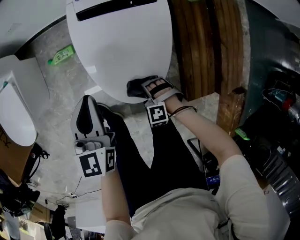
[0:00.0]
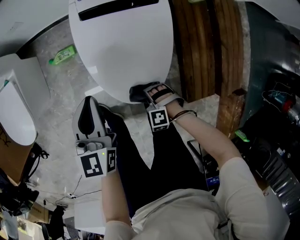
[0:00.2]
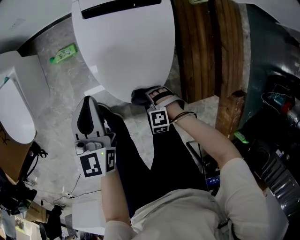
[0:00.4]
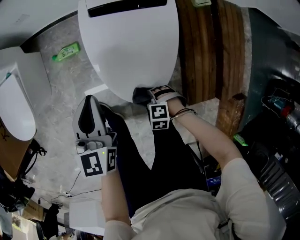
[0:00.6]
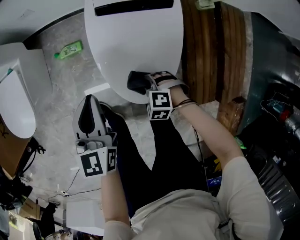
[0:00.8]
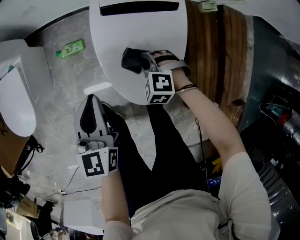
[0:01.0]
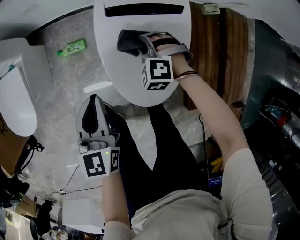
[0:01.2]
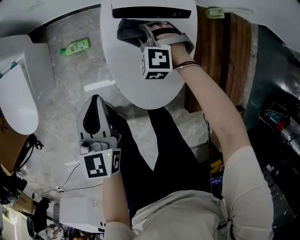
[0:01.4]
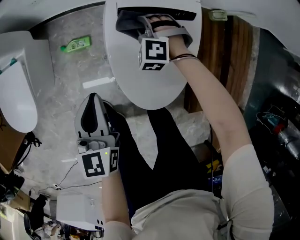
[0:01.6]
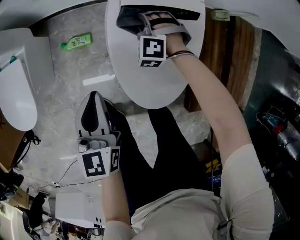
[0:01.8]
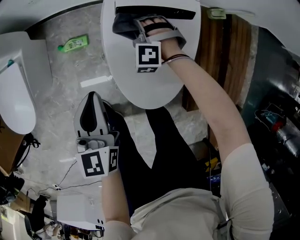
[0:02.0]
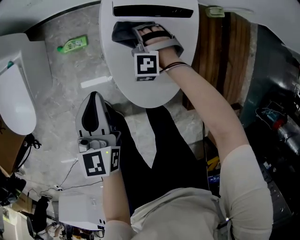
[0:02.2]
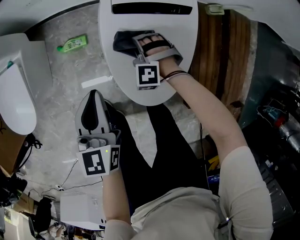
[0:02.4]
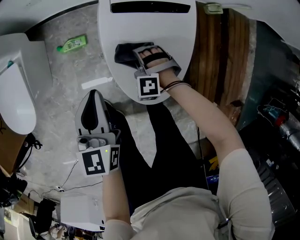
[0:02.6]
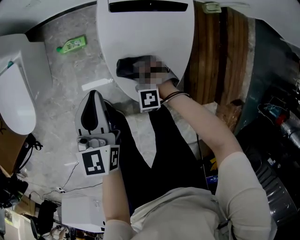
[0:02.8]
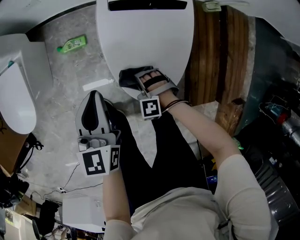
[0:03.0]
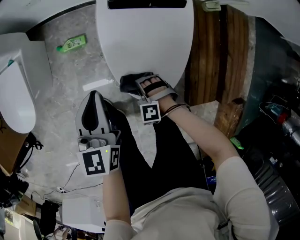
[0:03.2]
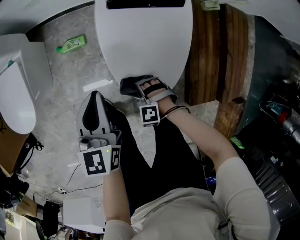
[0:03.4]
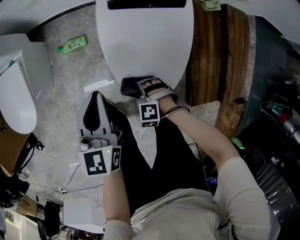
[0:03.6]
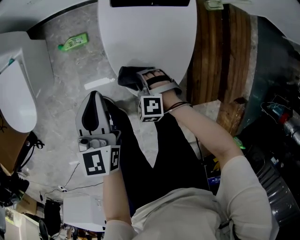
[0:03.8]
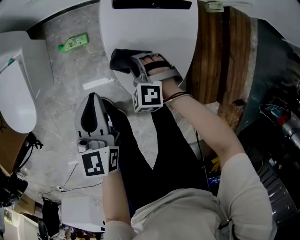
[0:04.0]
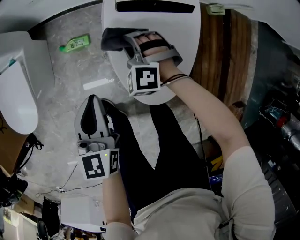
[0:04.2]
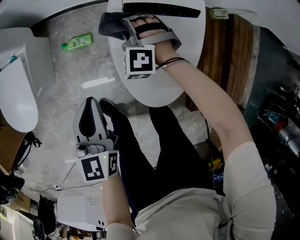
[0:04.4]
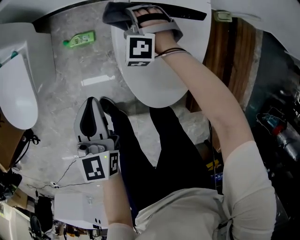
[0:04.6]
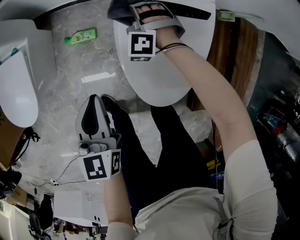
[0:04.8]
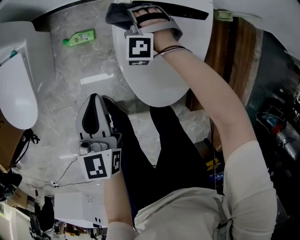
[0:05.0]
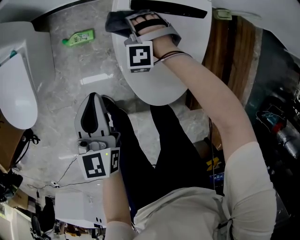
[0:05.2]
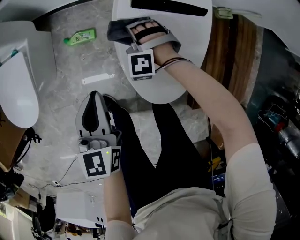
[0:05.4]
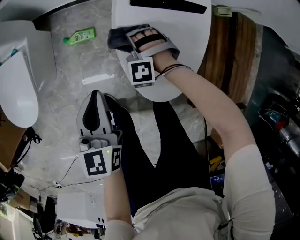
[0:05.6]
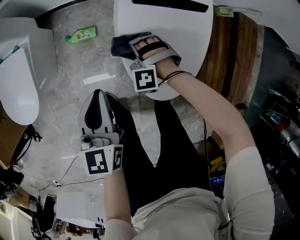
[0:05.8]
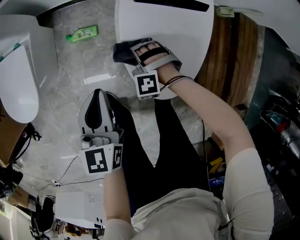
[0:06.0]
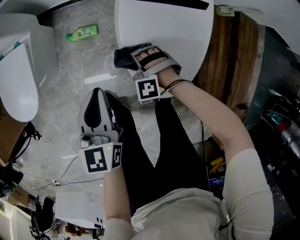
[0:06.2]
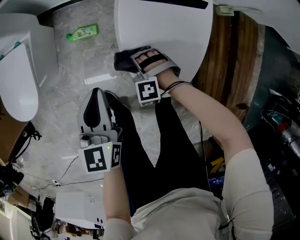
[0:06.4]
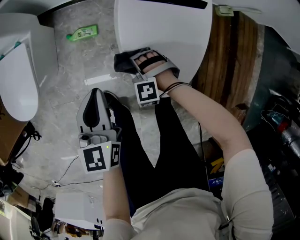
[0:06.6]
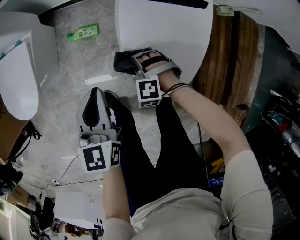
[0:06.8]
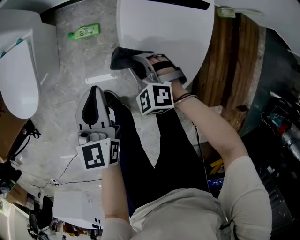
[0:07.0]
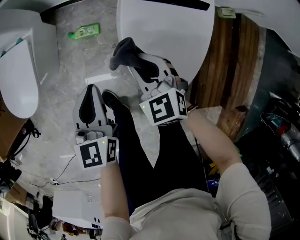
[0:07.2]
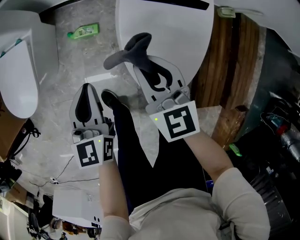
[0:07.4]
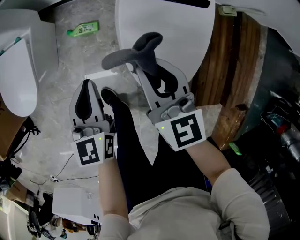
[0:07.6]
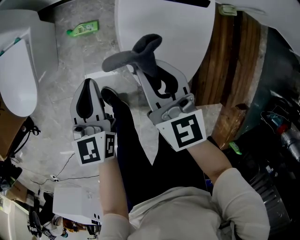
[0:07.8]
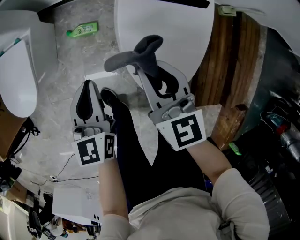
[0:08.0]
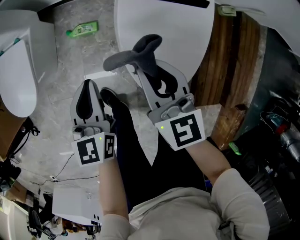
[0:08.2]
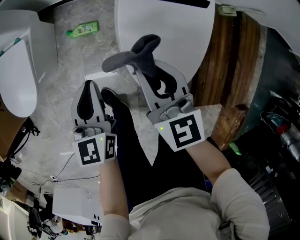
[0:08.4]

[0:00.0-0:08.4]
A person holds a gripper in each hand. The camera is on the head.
0:00.0 to 0:01.4: The left gripper changes place by roughly 5 cm.

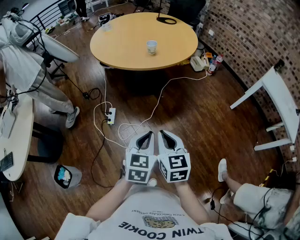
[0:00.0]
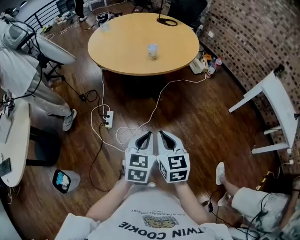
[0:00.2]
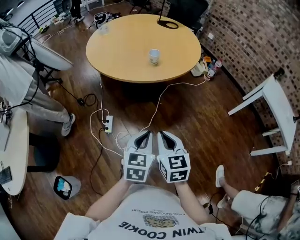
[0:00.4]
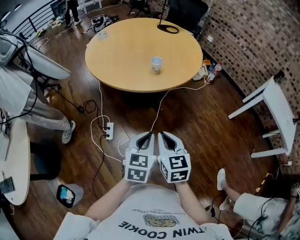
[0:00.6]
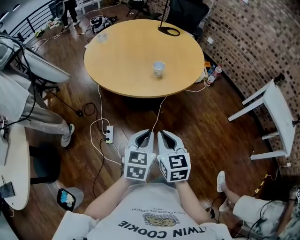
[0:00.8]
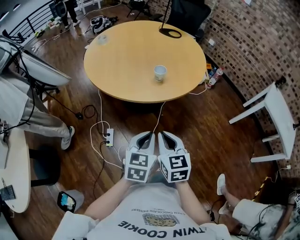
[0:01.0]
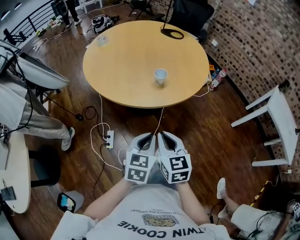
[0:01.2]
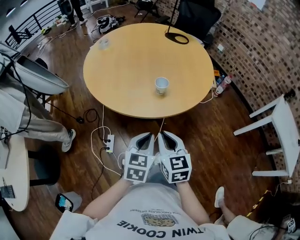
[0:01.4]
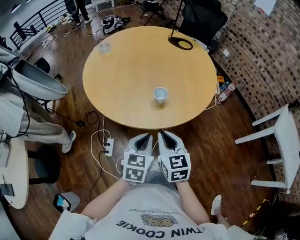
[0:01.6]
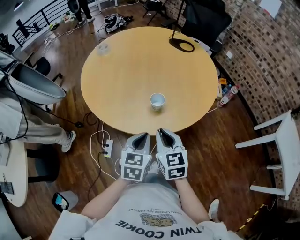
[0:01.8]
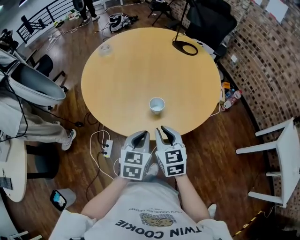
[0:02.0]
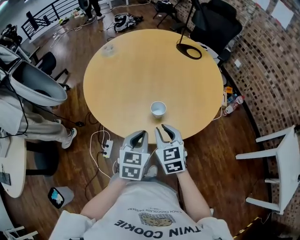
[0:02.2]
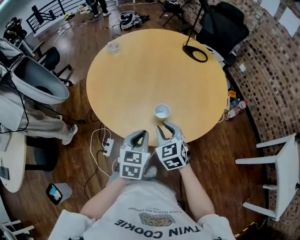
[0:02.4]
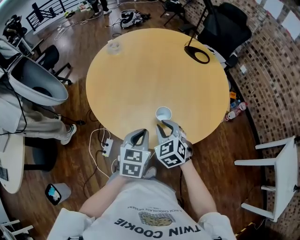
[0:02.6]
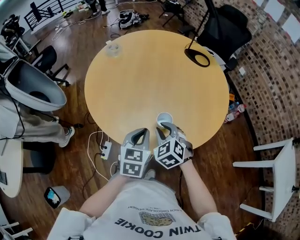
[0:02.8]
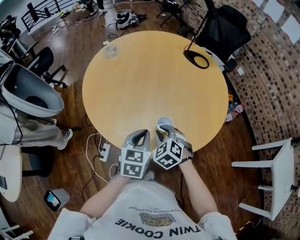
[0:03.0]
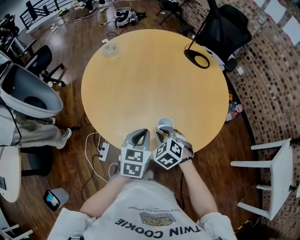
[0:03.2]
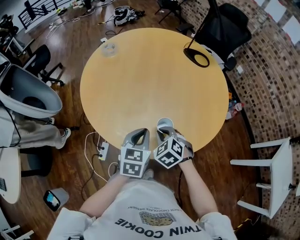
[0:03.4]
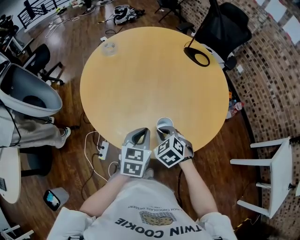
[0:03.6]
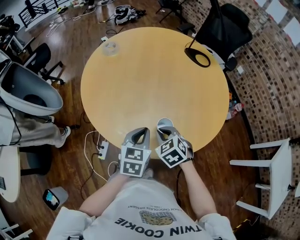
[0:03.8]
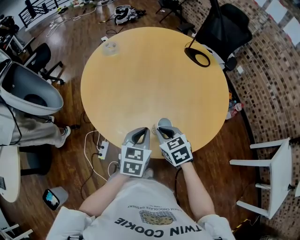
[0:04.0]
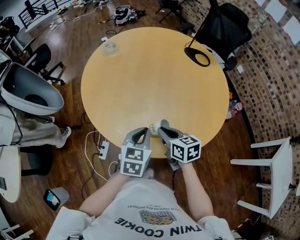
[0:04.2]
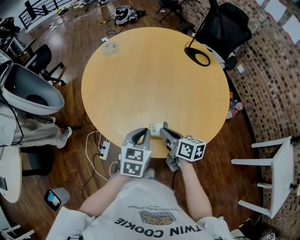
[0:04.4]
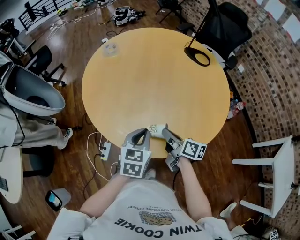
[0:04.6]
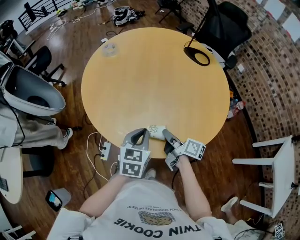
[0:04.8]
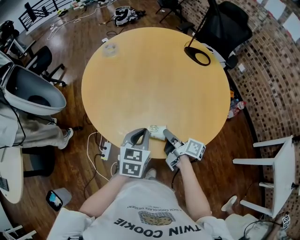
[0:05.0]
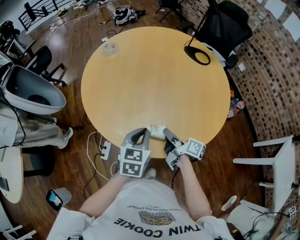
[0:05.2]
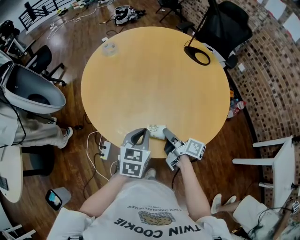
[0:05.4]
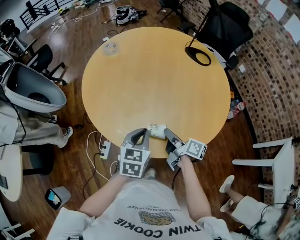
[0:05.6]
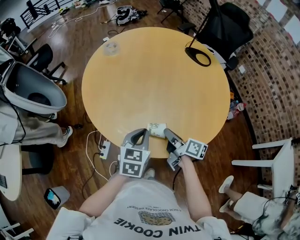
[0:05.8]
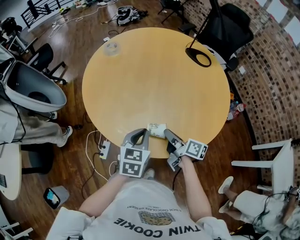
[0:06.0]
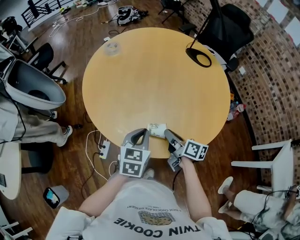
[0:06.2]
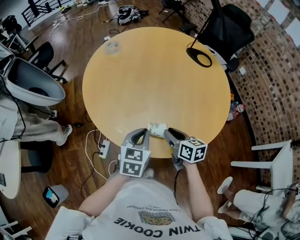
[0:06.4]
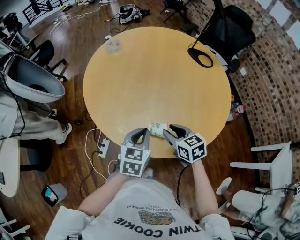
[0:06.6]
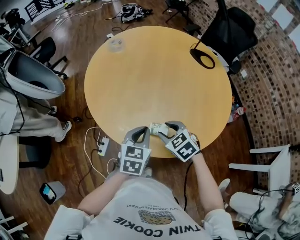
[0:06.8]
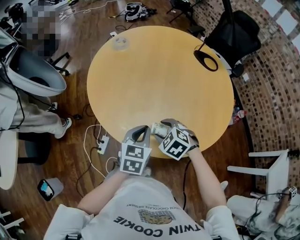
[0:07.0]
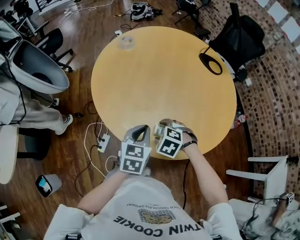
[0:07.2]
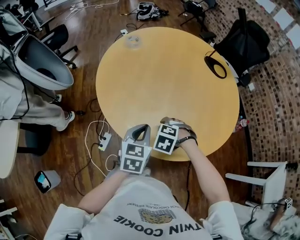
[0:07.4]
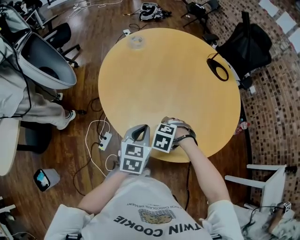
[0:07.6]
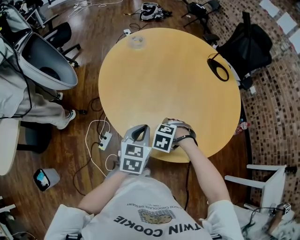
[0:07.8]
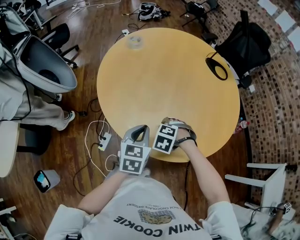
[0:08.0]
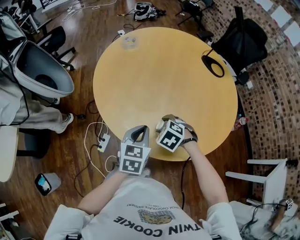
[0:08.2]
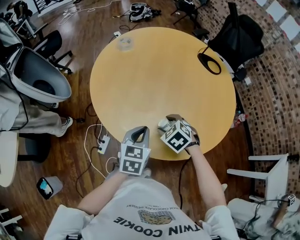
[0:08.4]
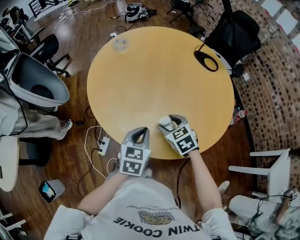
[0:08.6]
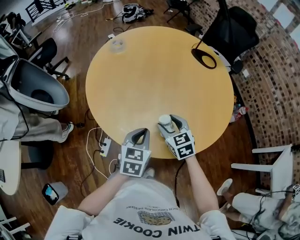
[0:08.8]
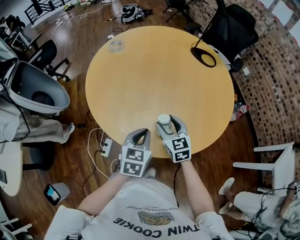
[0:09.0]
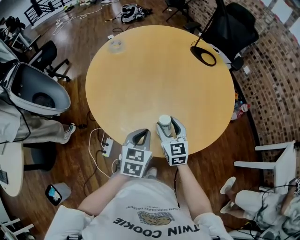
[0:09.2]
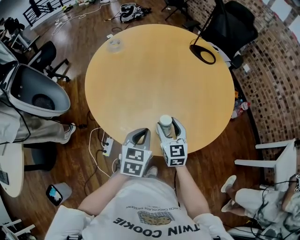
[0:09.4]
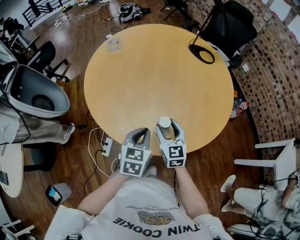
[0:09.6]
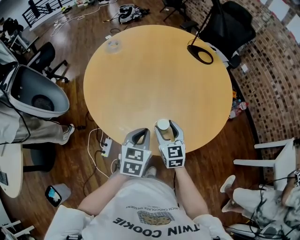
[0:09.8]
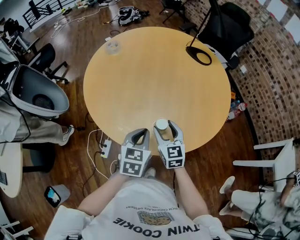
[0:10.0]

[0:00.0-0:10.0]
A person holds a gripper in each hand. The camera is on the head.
0:00.0 to 0:01.4: Both grippers travel together forward, roughly 35 cm.
0:01.4 to 0:02.8: The grippers both shift forward by some 25 cm. The right gripper rotates around the line of its fingers by approximately 40 degrees, counterclockwise from behind.
0:02.8 to 0:04.2: The right gripper rotates around the line of its fingers by some 50 degrees, clockwise from behind.
0:04.2 to 0:05.8: The right gripper moves about 5 cm, and rolls clockwise, seen from behind, by about 40 degrees.
0:05.8 to 0:07.2: The right gripper moves to the left, roughly 10 cm, twists some 100 degrees counterclockwise, seen from behind, and opens its fingers.
0:07.2 to 0:08.6: The right gripper moves about 10 cm, and rotates about 40 degrees.
0:08.6 to 0:10.0: The right gripper rotates about 30 degrees.

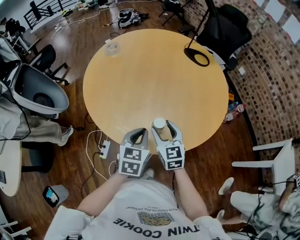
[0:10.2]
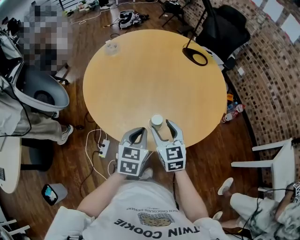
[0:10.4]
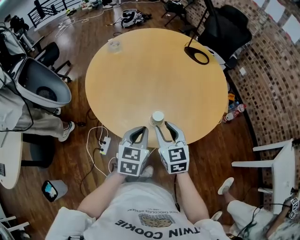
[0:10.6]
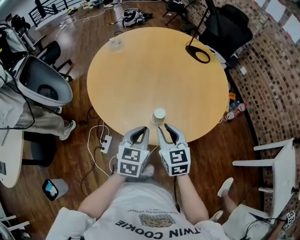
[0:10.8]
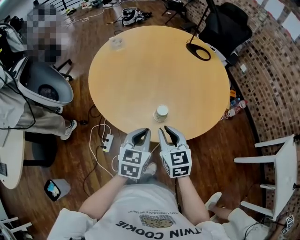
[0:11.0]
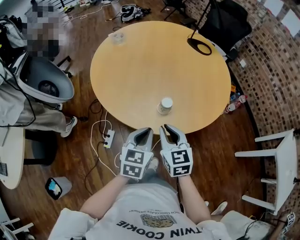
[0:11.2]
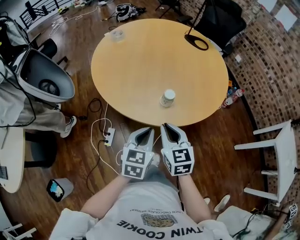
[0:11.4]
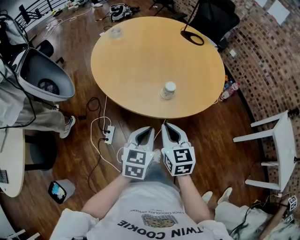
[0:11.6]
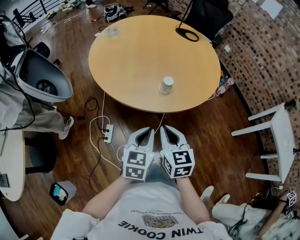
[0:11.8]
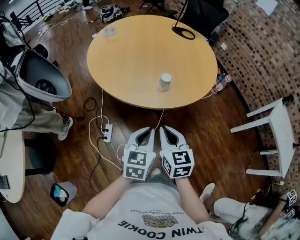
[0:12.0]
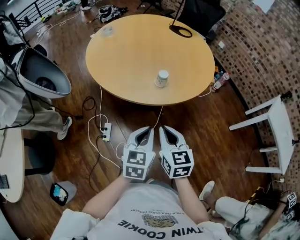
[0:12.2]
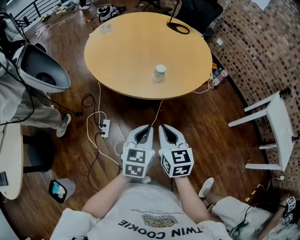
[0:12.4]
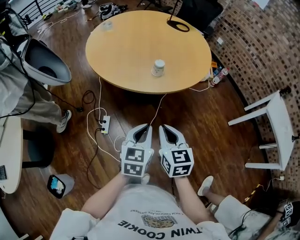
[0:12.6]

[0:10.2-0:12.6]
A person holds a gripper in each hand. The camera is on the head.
0:10.2 to 0:11.4: The two grippers go roughly 15 cm backward. The right gripper closes its fingers.
0:11.4 to 0:12.6: Both grippers travel together backward, some 20 cm.

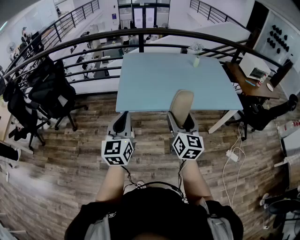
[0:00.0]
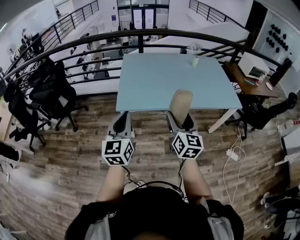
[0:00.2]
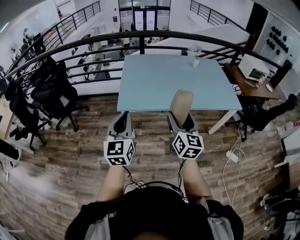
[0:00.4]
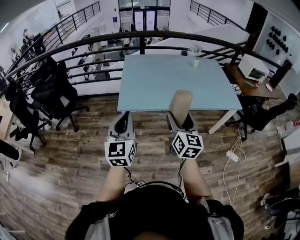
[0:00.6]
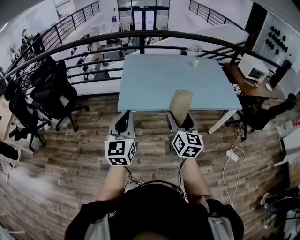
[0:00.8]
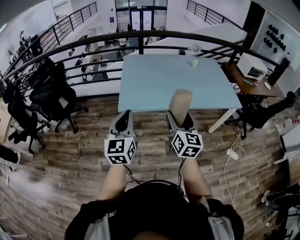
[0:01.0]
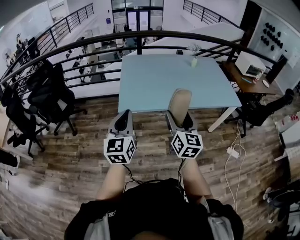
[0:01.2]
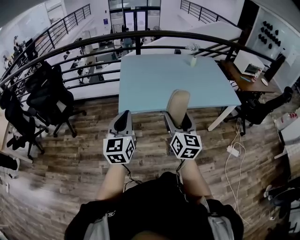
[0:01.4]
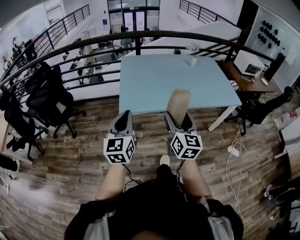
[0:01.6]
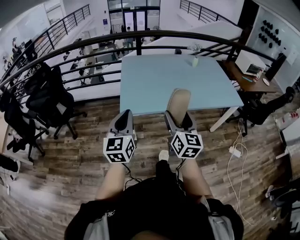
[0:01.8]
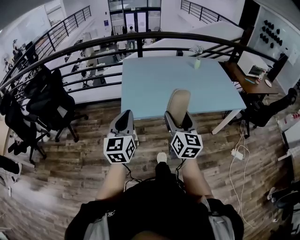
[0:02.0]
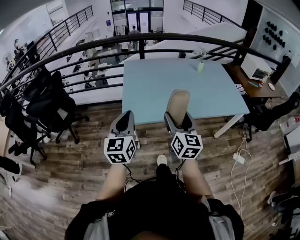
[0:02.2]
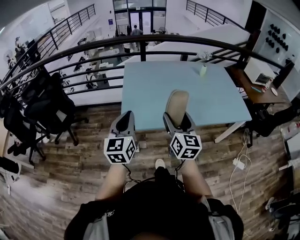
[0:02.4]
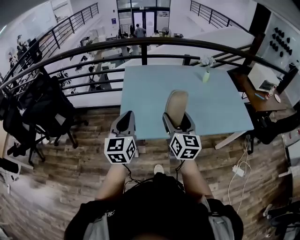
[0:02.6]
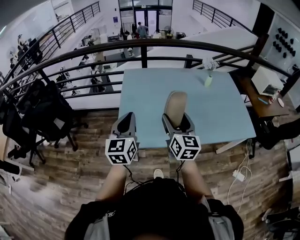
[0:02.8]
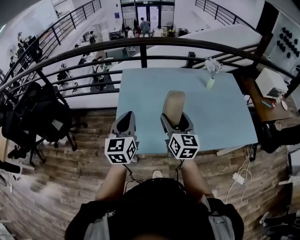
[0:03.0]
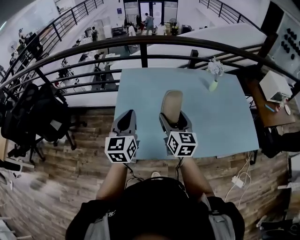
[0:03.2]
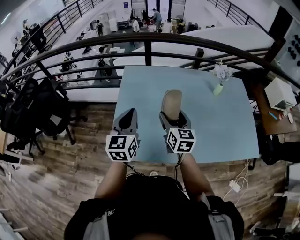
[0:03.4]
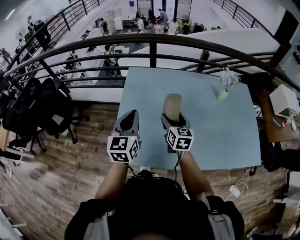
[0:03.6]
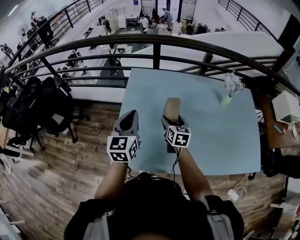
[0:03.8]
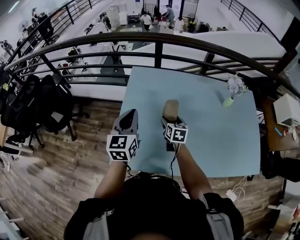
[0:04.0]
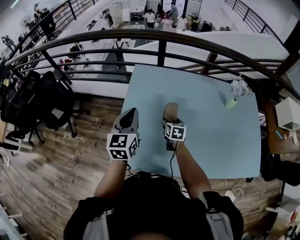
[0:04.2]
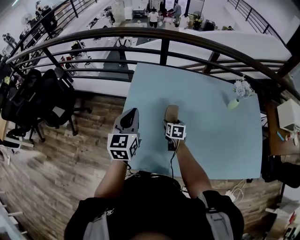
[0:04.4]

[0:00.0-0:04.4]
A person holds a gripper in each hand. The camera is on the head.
0:00.0 to 0:01.4: The right gripper is displaced to the left by roughly 5 cm.
0:01.4 to 0:03.0: Both grippers travel together forward, some 35 cm.
0:03.0 to 0:04.4: The right gripper moves downward and forward, approximately 35 cm, and points its fingers roughly 40 degrees further downward. The left gripper travels forward by some 20 cm.
